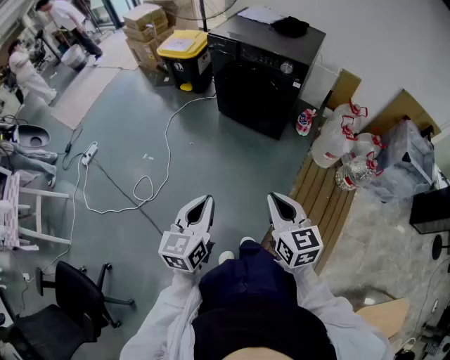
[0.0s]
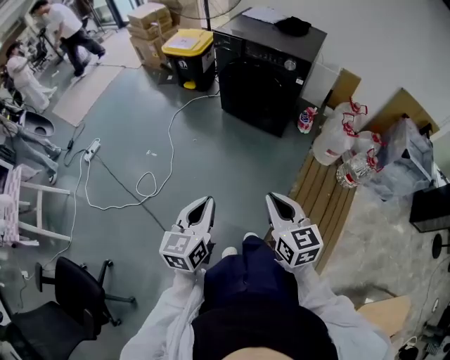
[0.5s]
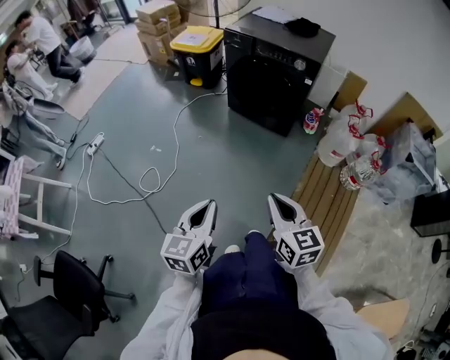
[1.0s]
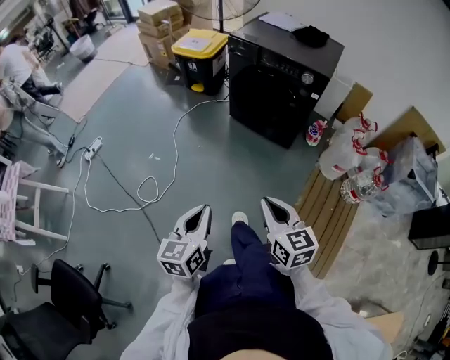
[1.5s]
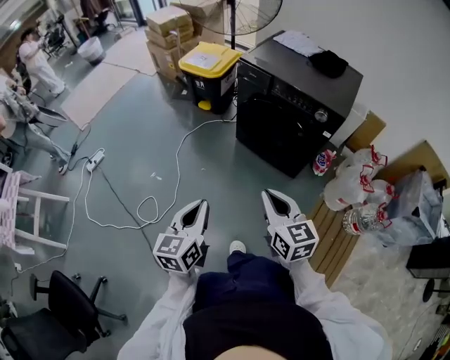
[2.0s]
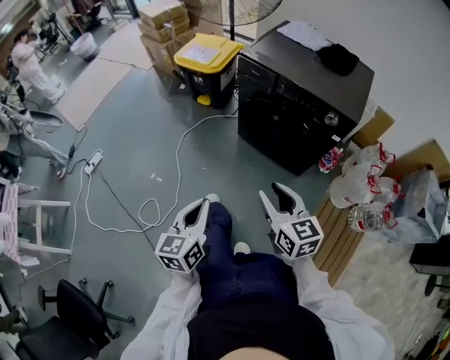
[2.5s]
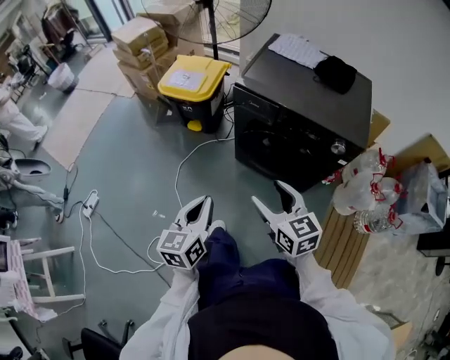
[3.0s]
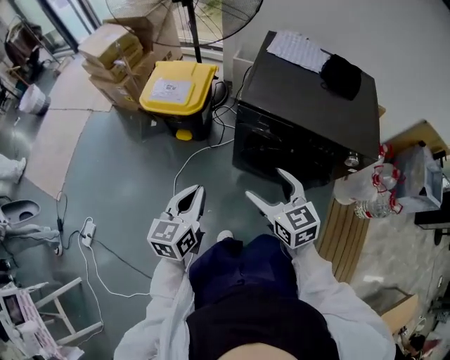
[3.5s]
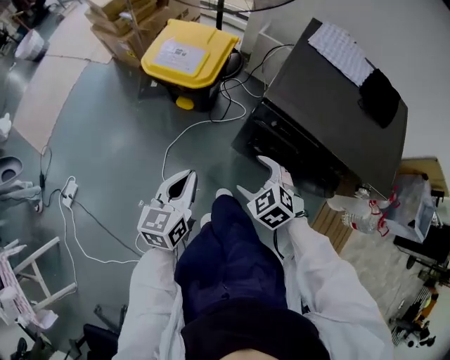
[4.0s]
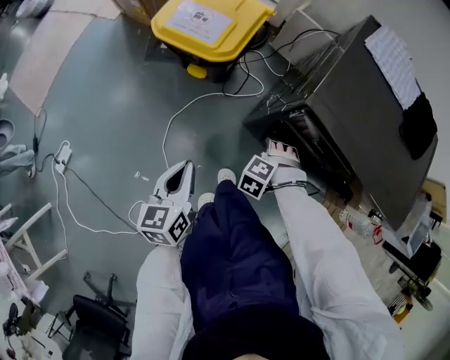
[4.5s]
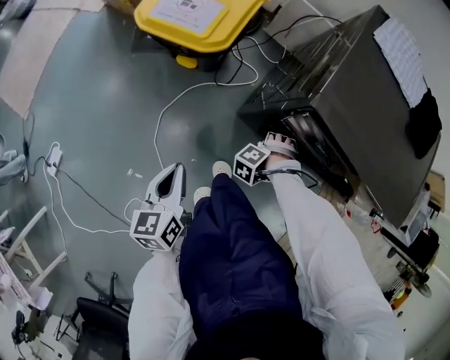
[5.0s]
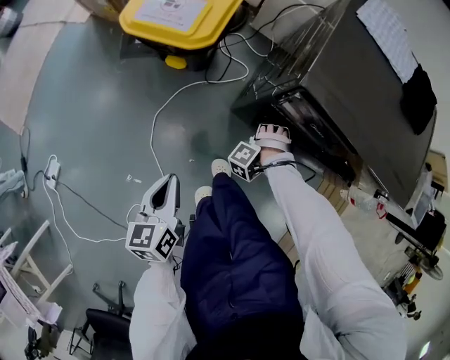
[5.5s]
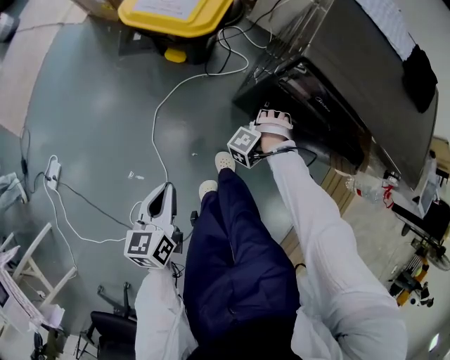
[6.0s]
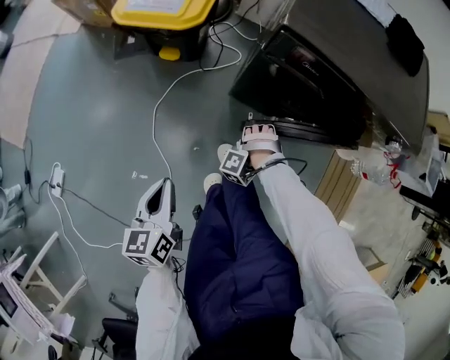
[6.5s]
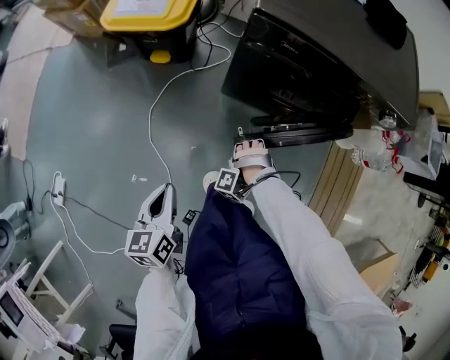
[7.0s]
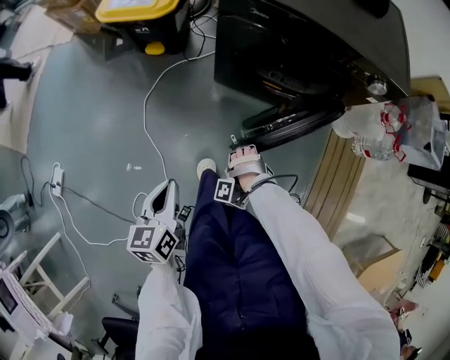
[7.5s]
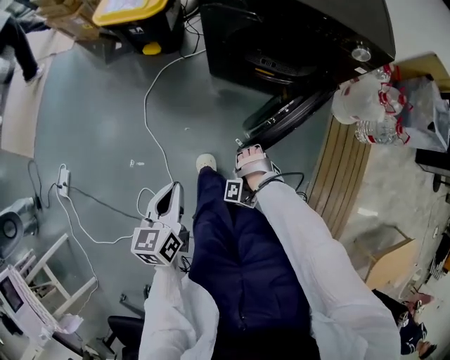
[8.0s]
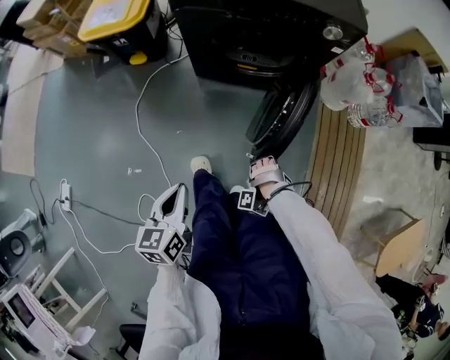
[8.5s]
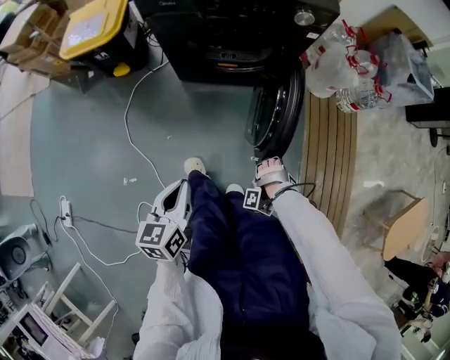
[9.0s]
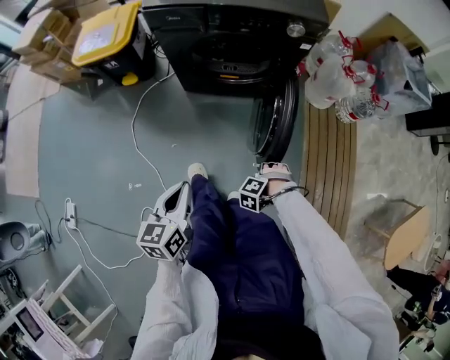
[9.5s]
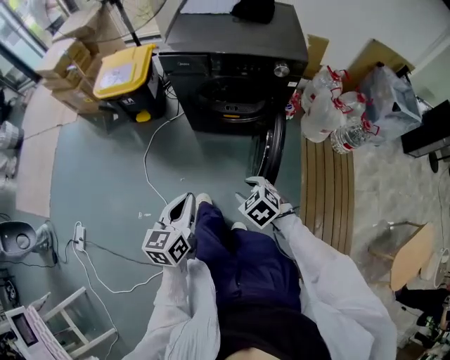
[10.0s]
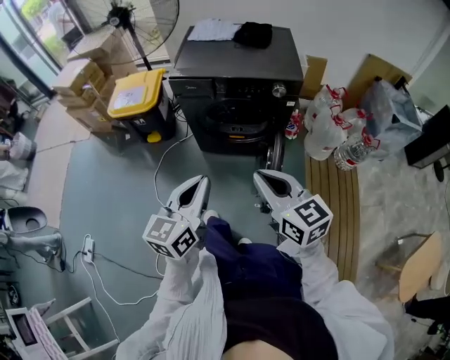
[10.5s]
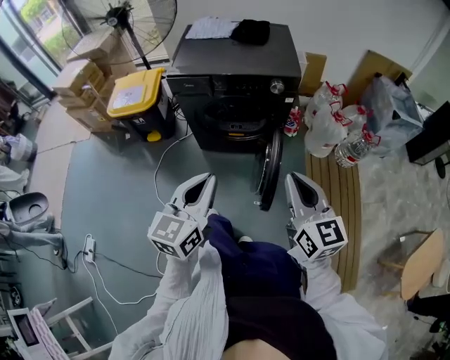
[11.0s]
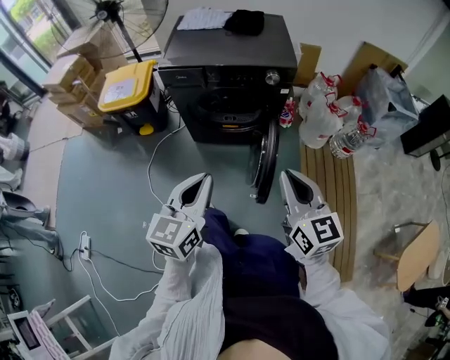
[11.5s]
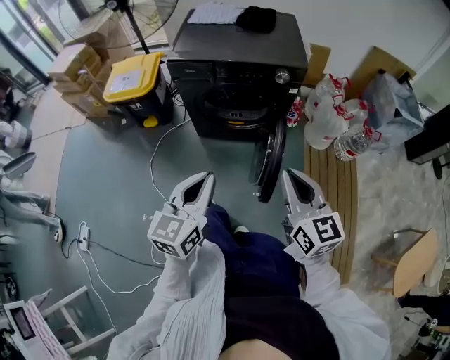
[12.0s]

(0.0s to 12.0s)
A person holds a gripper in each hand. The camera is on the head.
0.0s - 2.0s: The left gripper changes place by about 25 cm.
2.0s - 4.0s: The left gripper moves about 60 cm.
4.0s - 6.0s: The left gripper travels downward by some 15 cm.
6.0s - 8.0s: The left gripper shifts by roughly 30 cm.
8.0s - 10.0s: The left gripper is displaced upward by some 15 cm.
10.0s - 12.0s: The left gripper goes roughly 10 cm upward.

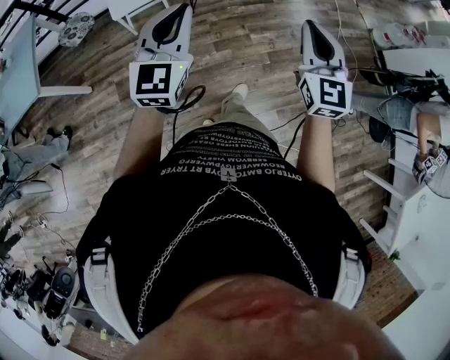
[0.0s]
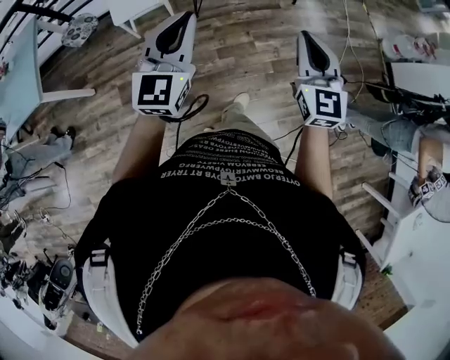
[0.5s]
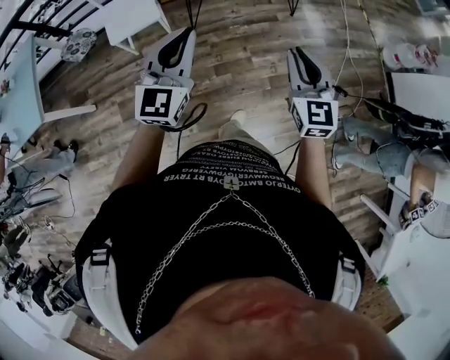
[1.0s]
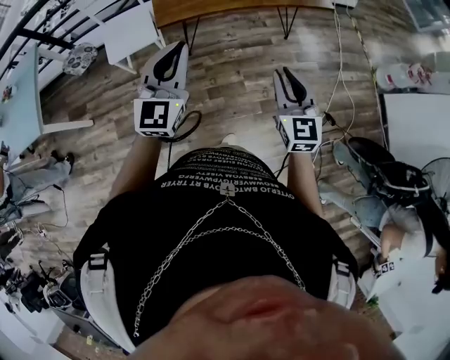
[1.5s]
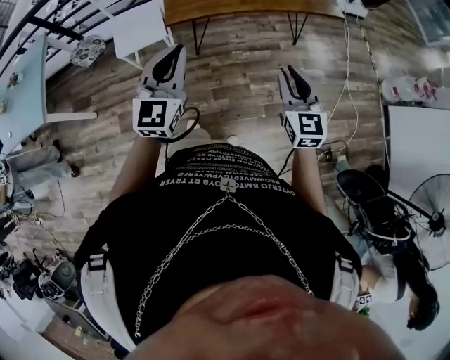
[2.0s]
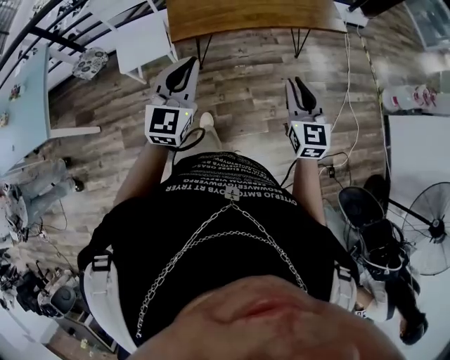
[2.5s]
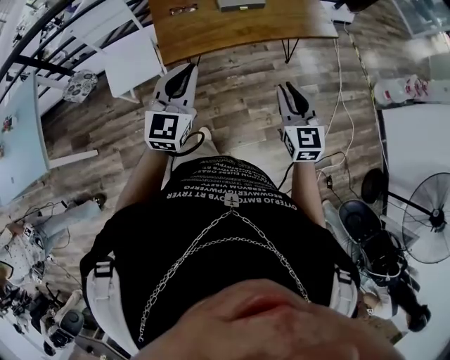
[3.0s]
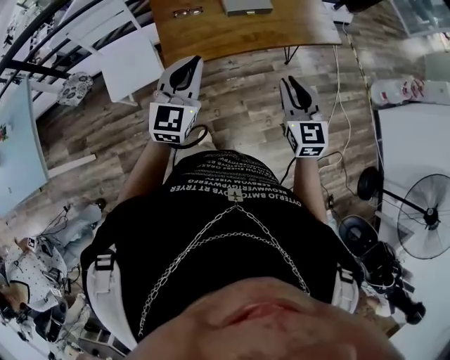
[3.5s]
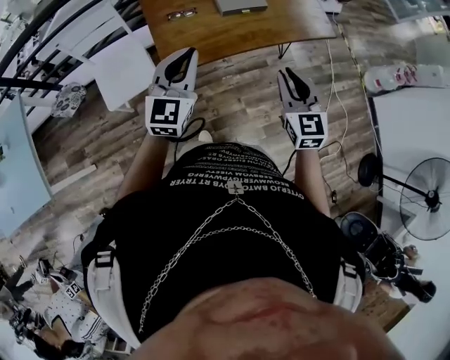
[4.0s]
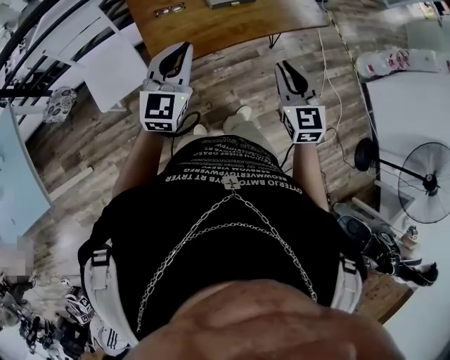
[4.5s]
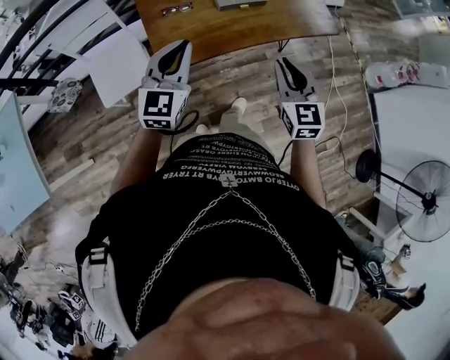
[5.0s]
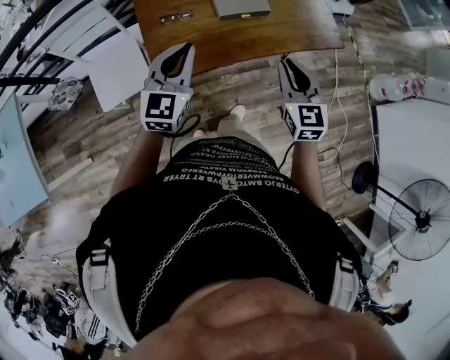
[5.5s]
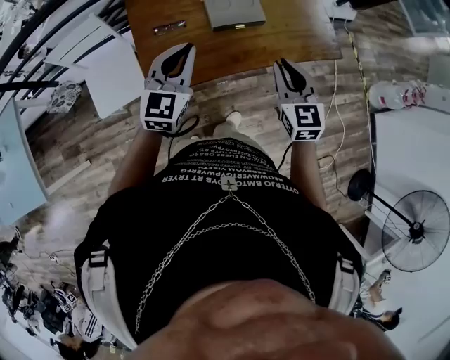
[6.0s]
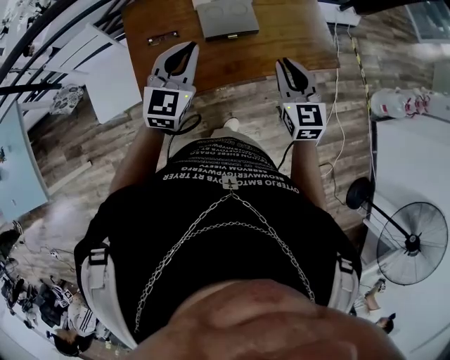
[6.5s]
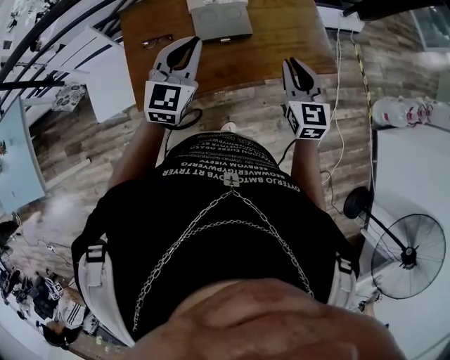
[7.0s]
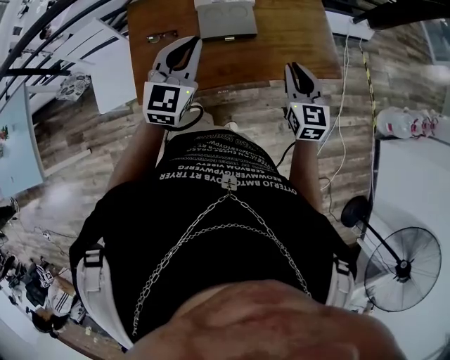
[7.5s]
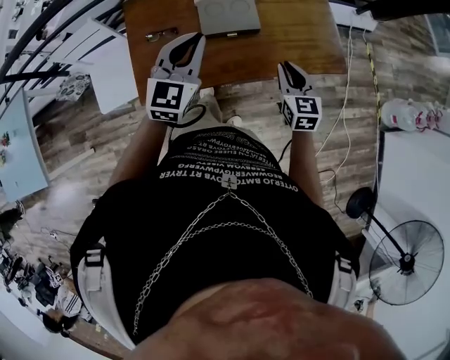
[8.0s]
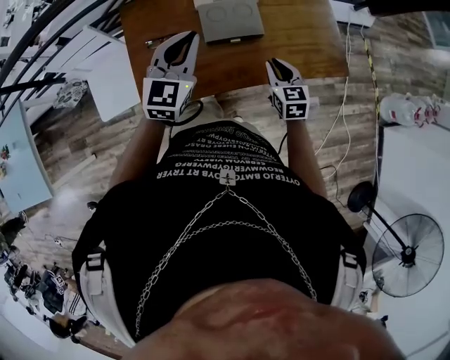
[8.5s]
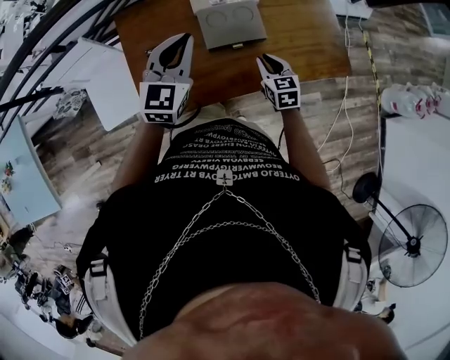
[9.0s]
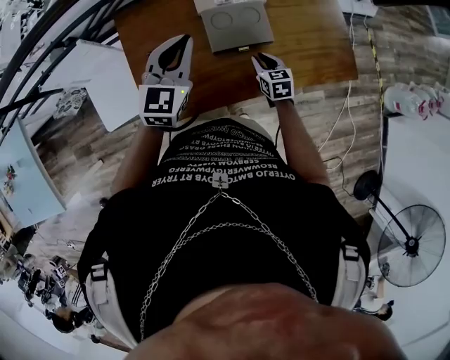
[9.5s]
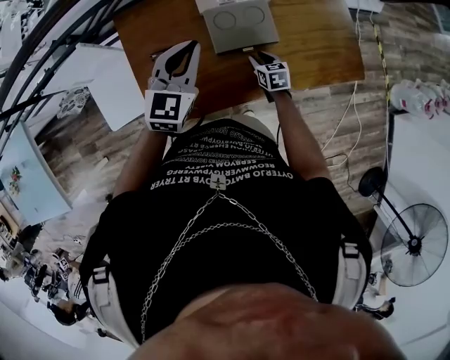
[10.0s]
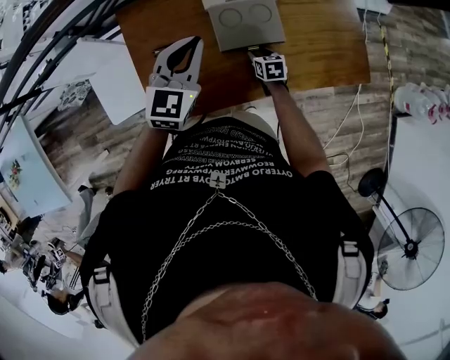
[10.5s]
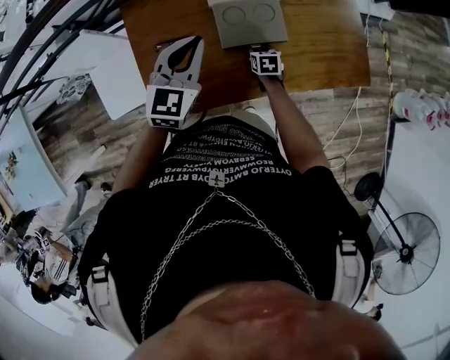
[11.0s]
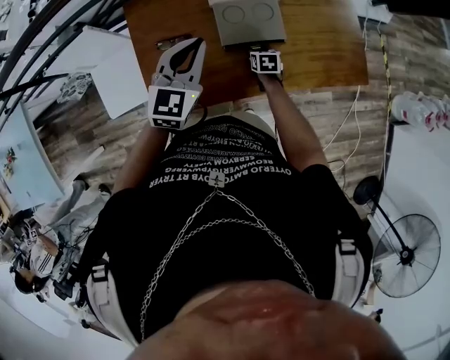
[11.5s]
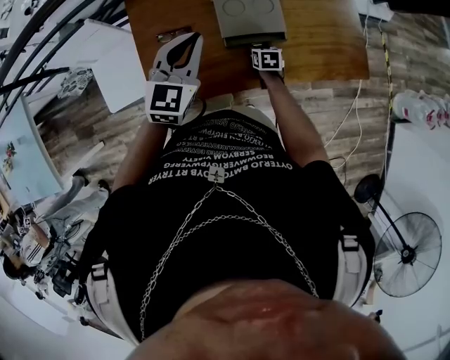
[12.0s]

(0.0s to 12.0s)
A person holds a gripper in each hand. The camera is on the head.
0.0s - 2.0s: Both grippers travel together forward and to the right, about 30 cm.
2.0s - 4.0s: The grippers both shift forward and to the left by about 30 cm.
4.0s - 6.0s: Both grippers travel together forward, roughly 20 cm.
6.0s - 8.0s: The right gripper moves to the right, downward and forward, approximately 20 cm; the left gripper travels to the right and forward by about 15 cm.
8.0s - 10.0s: The right gripper shifts roughly 30 cm downward, forward and to the left, and swivels some 30 degrees. The left gripper travels forward, downward and to the left by approximately 20 cm.
10.0s - 12.0s: The left gripper heads backward, covering about 5 cm.

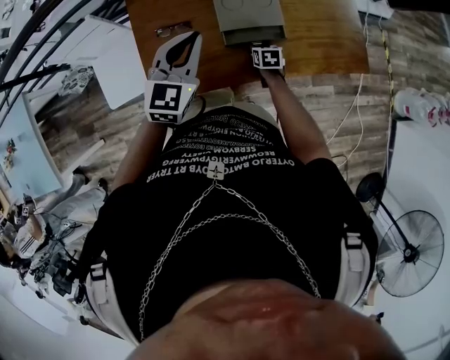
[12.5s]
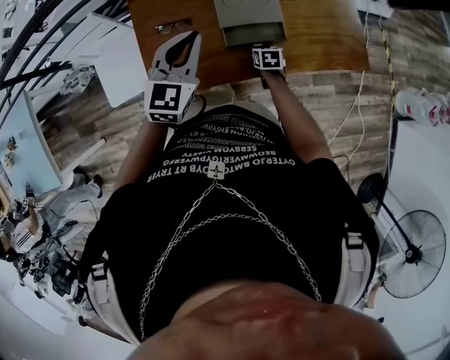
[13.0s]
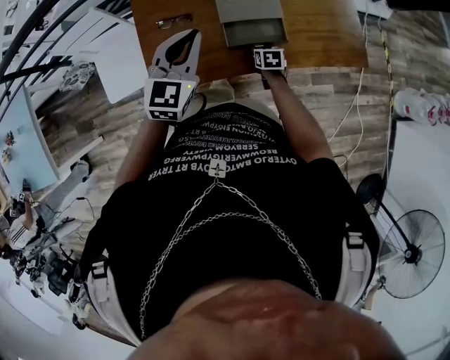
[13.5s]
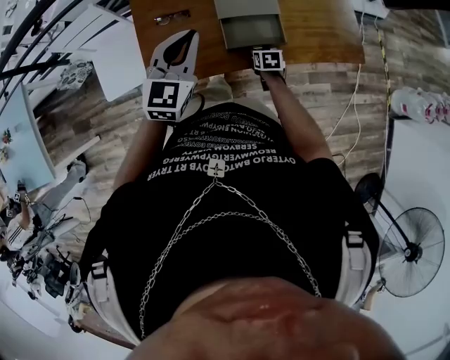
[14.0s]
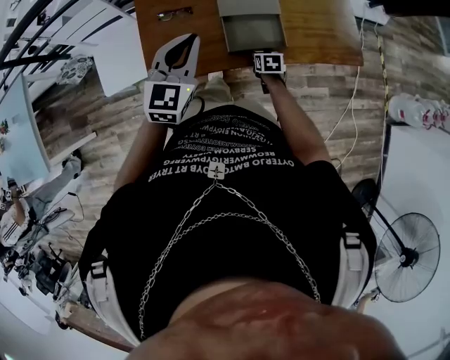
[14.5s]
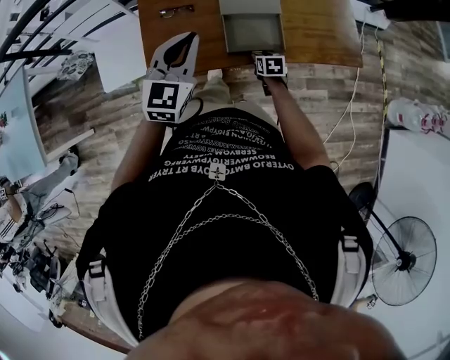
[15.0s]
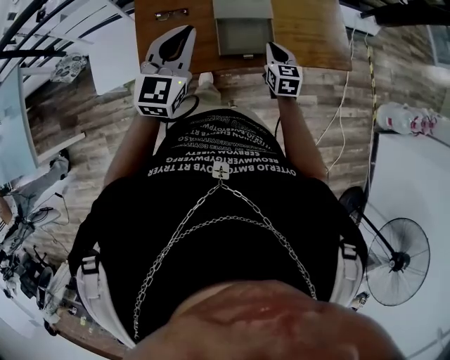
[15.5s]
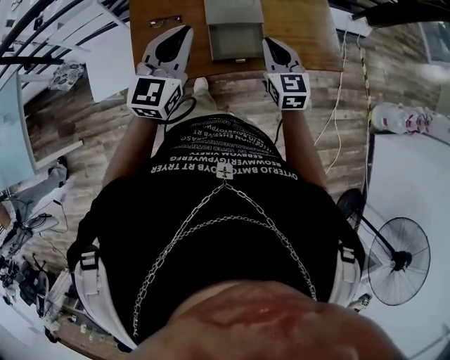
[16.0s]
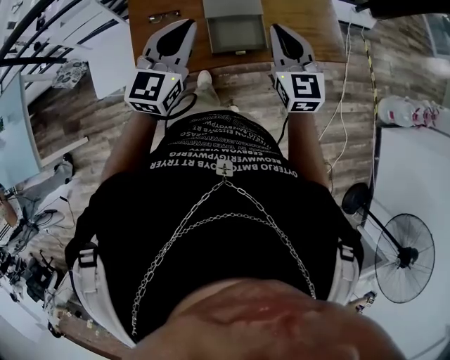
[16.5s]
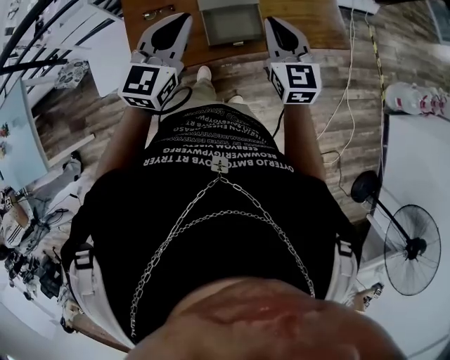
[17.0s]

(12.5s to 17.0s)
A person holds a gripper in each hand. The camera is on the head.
12.5s - 14.5s: Both grippers travel together backward, roughly 10 cm.
14.5s - 17.0s: The right gripper is displaced upward by about 40 cm, tips its fingers upward by some 50 degrees, and closes up. Meanwhile the left gripper moves upward and to the right, about 10 cm.
